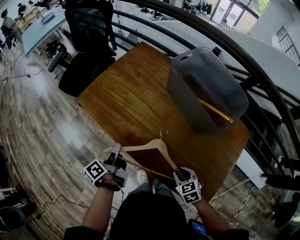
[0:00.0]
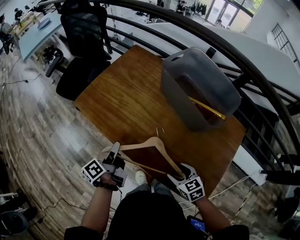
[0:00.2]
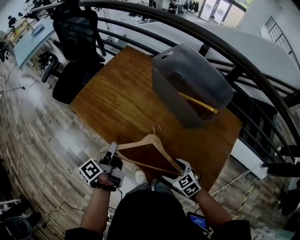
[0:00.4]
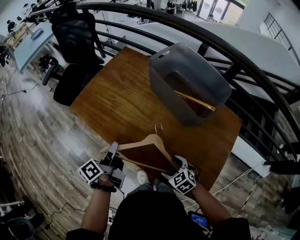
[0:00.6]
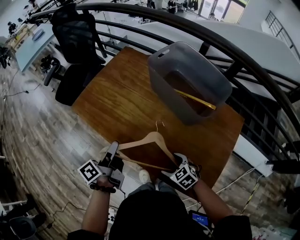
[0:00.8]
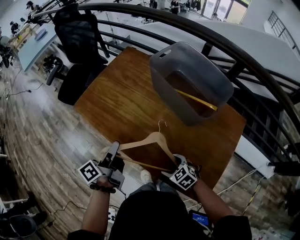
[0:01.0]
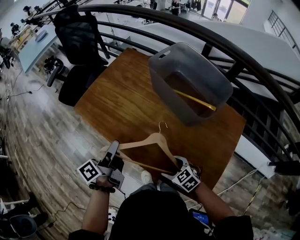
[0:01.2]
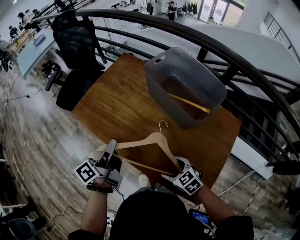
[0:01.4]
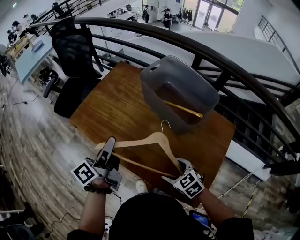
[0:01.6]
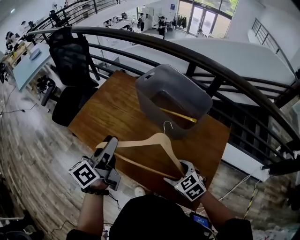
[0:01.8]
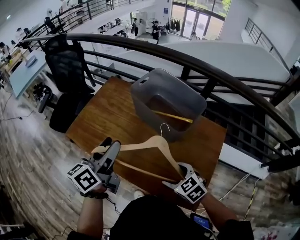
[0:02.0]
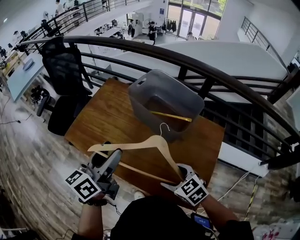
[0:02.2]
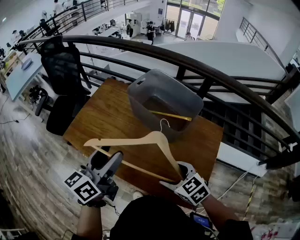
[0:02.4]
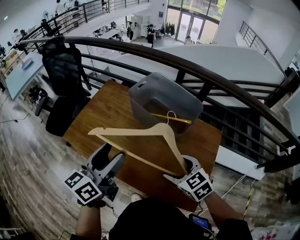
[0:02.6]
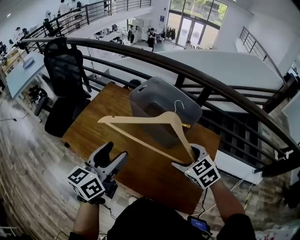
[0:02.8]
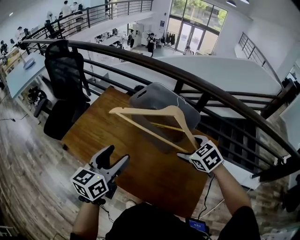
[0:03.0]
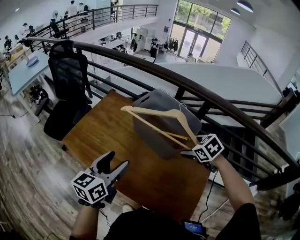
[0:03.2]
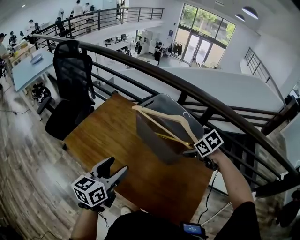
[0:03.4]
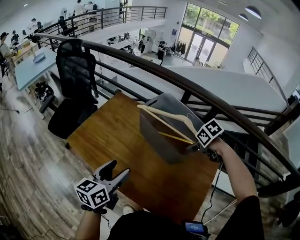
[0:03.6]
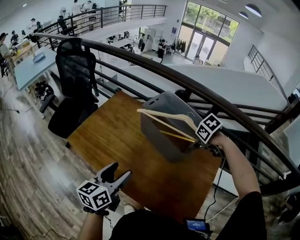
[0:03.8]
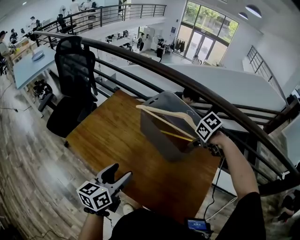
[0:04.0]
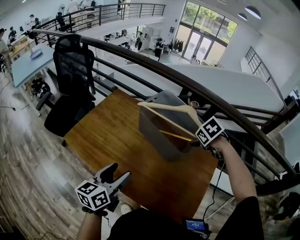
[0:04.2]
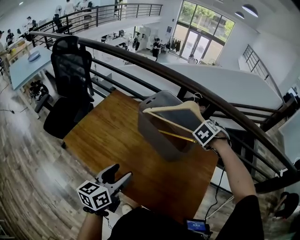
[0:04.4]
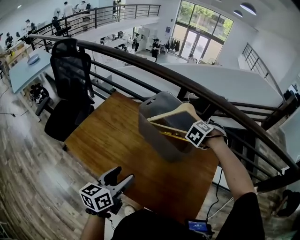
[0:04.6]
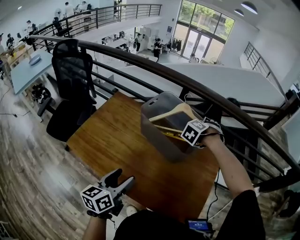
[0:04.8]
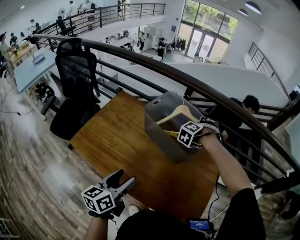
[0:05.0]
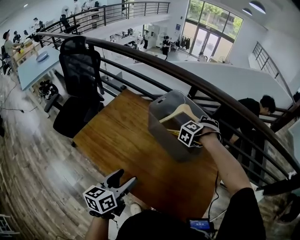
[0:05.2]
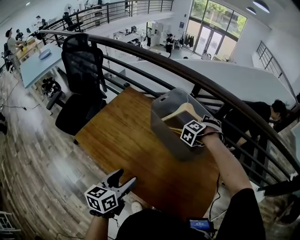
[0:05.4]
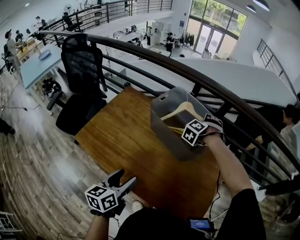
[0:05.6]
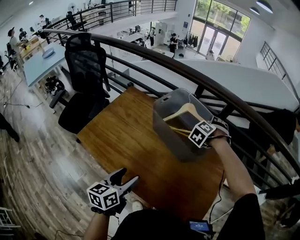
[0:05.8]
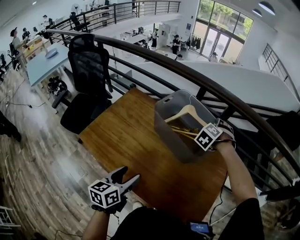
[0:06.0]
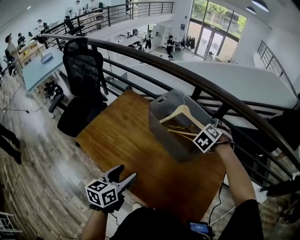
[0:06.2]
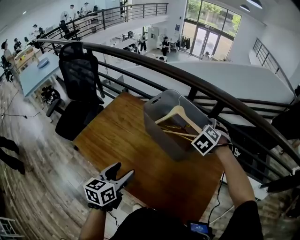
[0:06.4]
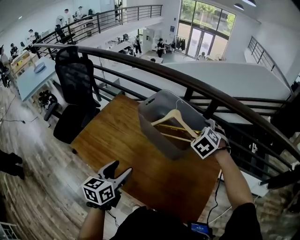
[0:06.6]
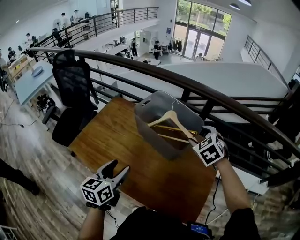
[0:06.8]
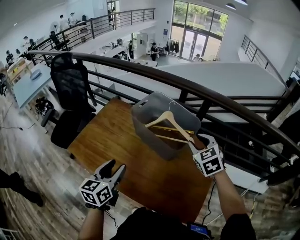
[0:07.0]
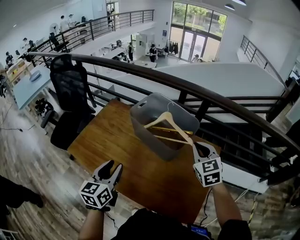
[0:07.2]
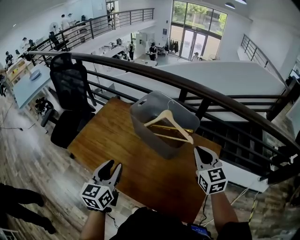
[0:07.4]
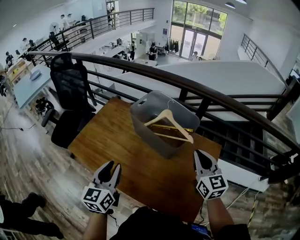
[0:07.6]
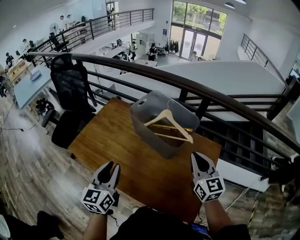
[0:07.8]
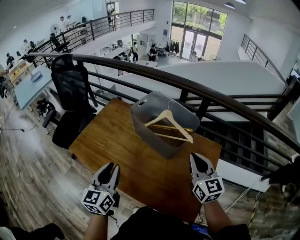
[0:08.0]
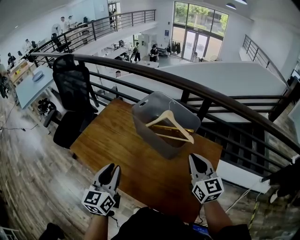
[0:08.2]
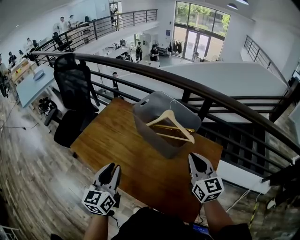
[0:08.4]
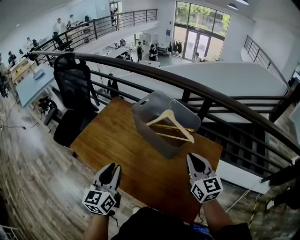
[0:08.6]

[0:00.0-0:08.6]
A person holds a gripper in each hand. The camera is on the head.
0:00.0 to 0:01.4: The left gripper shifts about 15 cm upward and to the right. The right gripper opens.
0:01.4 to 0:02.8: The left gripper heads upward and to the right, covering approximately 15 cm, rolls clockwise, seen from behind, by about 50 degrees, and opens up. Meanwhile the right gripper is displaced upward, forward and to the right by about 25 cm, and rotates some 20 degrees.
0:02.8 to 0:04.4: The left gripper goes roughly 10 cm downward, while the right gripper shifts by some 20 cm, and changes its angle by approximately 40 degrees.
0:04.4 to 0:05.8: The right gripper travels to the left by about 5 cm.
0:05.8 to 0:07.2: The right gripper moves approximately 20 cm, rotates some 60 degrees, and closes. Meanwhile the left gripper travels upward by about 5 cm, and closes its fingers.
0:07.2 to 0:08.6: The right gripper travels backward by about 5 cm, and turns by about 30 degrees.

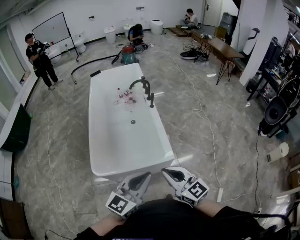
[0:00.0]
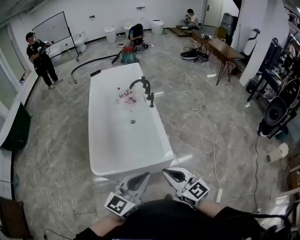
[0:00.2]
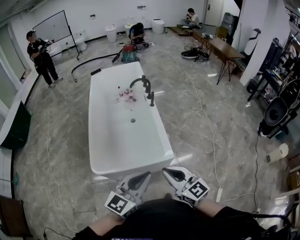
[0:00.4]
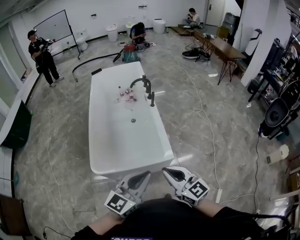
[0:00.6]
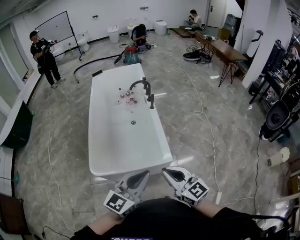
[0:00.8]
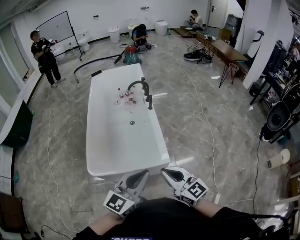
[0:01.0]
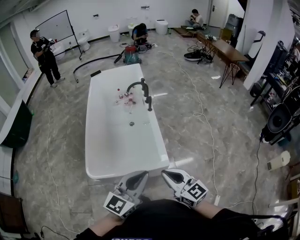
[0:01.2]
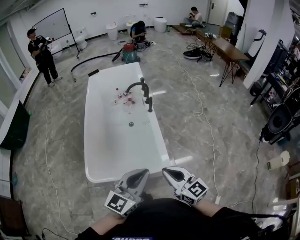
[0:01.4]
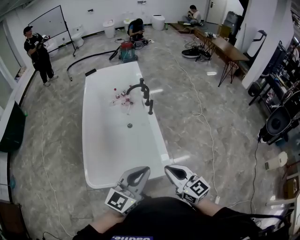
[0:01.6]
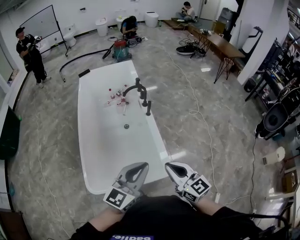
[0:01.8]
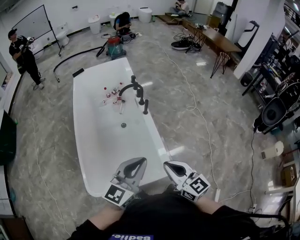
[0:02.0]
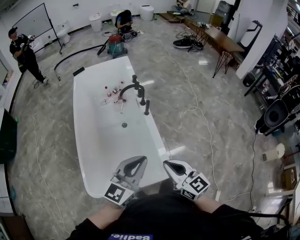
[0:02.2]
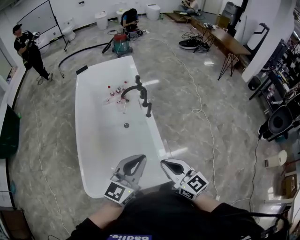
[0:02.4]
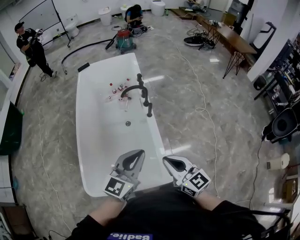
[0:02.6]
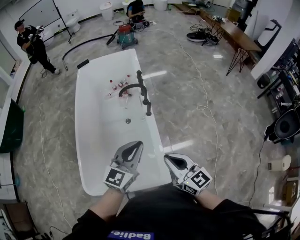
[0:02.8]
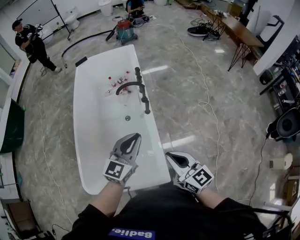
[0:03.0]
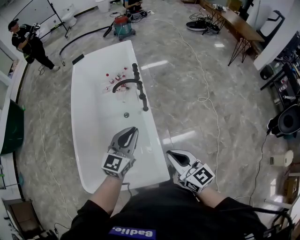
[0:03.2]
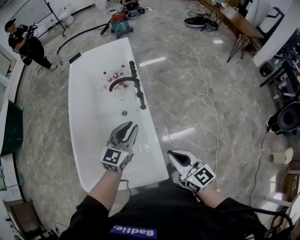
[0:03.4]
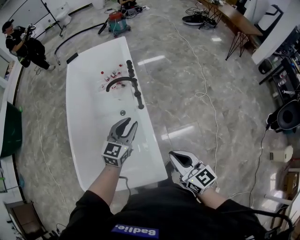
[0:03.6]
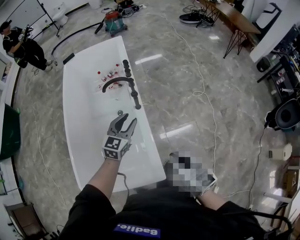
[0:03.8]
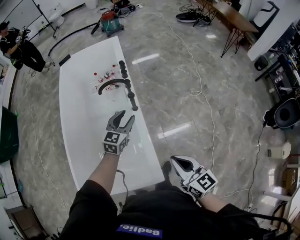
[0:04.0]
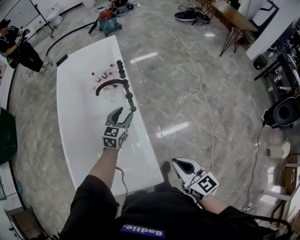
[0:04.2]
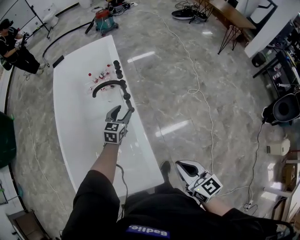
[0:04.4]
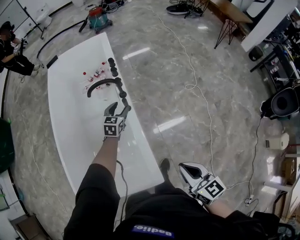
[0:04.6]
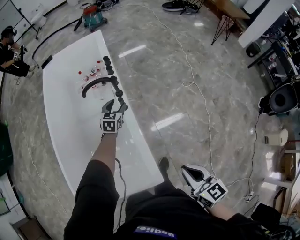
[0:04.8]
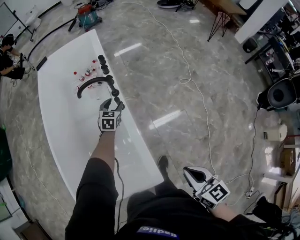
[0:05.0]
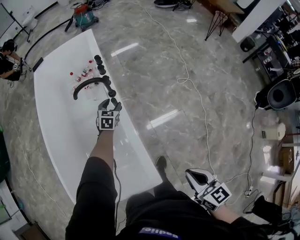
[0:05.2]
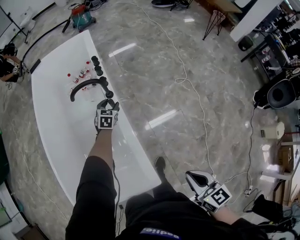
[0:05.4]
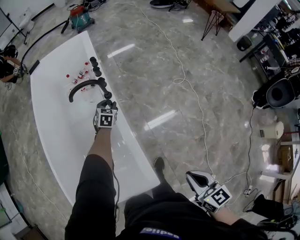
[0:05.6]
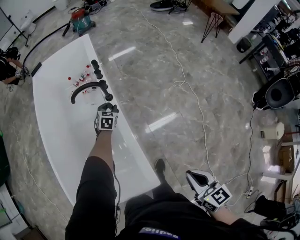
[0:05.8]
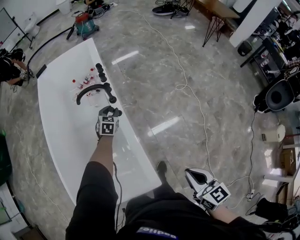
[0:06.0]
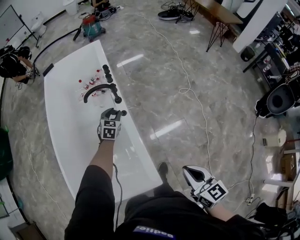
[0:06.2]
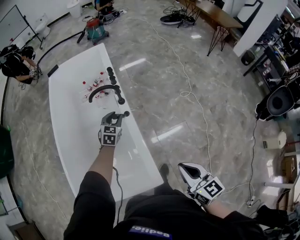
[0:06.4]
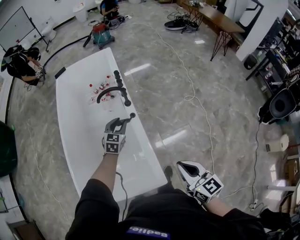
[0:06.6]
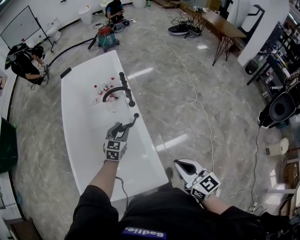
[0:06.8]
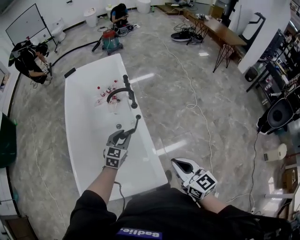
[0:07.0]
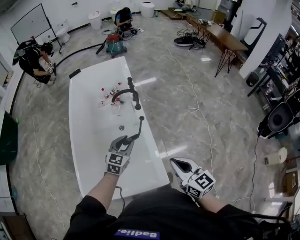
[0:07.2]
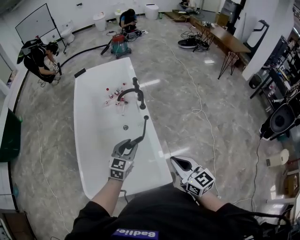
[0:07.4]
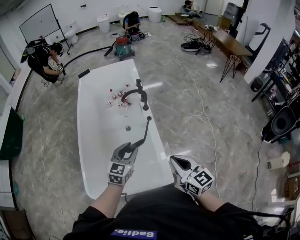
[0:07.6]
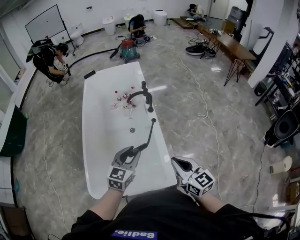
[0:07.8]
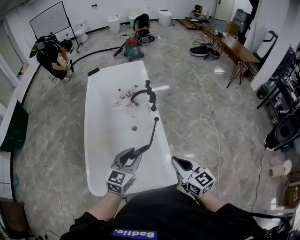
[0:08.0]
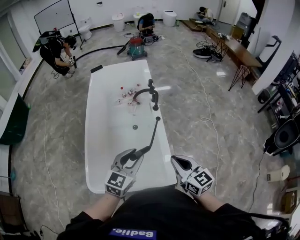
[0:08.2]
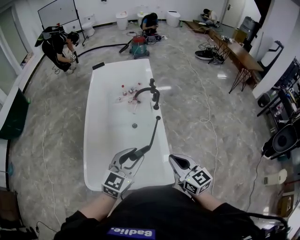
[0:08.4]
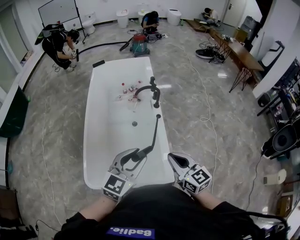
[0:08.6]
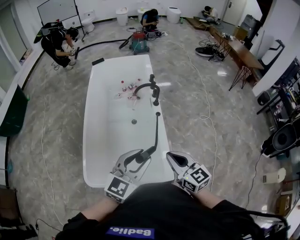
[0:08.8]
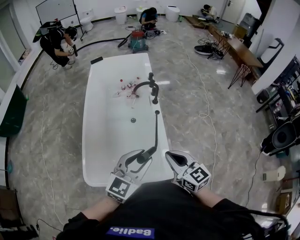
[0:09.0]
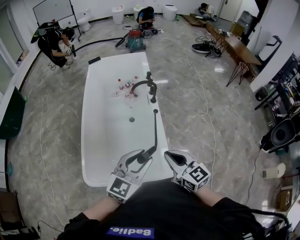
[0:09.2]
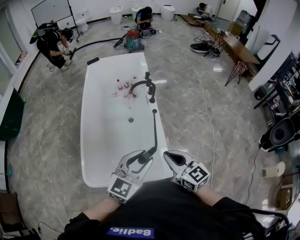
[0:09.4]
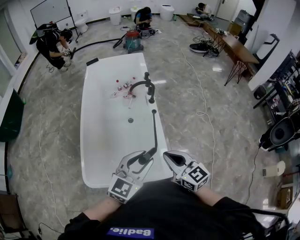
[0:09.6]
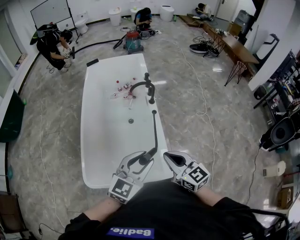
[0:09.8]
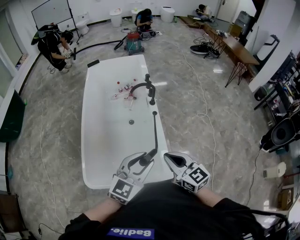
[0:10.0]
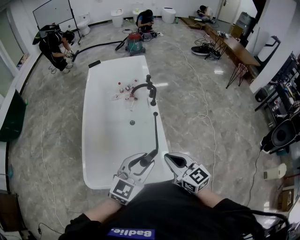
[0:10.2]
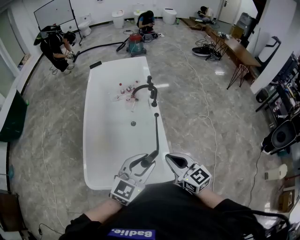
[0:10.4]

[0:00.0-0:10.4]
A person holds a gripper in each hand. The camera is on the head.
0:00.0 to 0:01.4: The left gripper goes approximately 10 cm forward. Meanwhile the right gripper heads forward and to the right, covering some 10 cm.
0:01.4 to 0:03.0: The grippers both shift forward by about 35 cm.
0:03.0 to 0:04.4: The right gripper heads to the right and downward, covering approximately 15 cm, while the left gripper heads forward and downward, covering roughly 30 cm, changes its angle by about 20 degrees, and opens its fingers.
0:04.4 to 0:06.0: The left gripper goes approximately 10 cm downward and forward; the right gripper moves to the right, approximately 5 cm.
0:06.0 to 0:07.4: The right gripper moves to the left and upward, roughly 20 cm. The left gripper moves backward and upward, roughly 40 cm, and rotates roughly 20 degrees.
0:07.4 to 0:09.0: The left gripper heads backward and upward, covering roughly 20 cm, while the right gripper shifts approximately 10 cm to the left.
0:09.0 to 0:10.4: The grippers stay close to where they were, moving slightly.

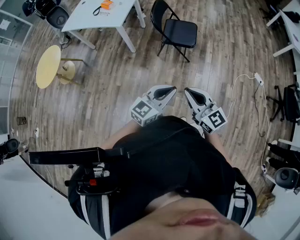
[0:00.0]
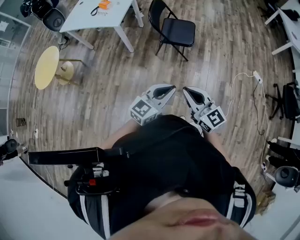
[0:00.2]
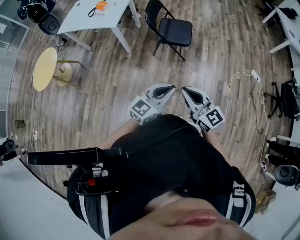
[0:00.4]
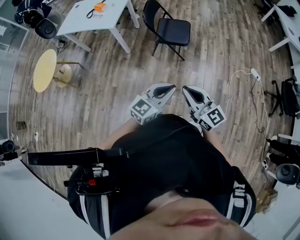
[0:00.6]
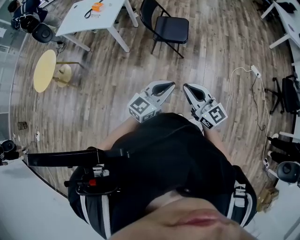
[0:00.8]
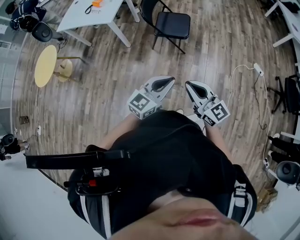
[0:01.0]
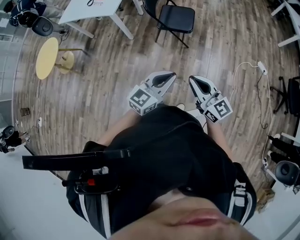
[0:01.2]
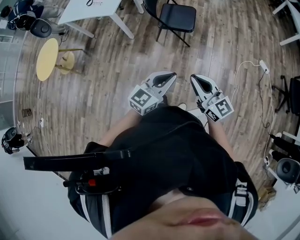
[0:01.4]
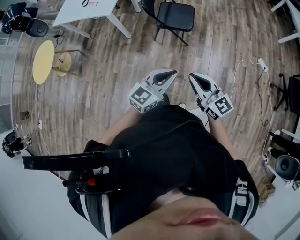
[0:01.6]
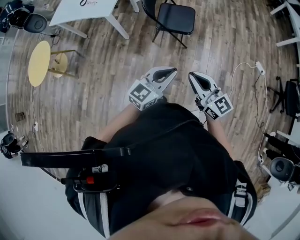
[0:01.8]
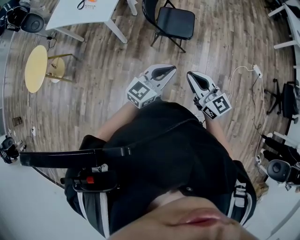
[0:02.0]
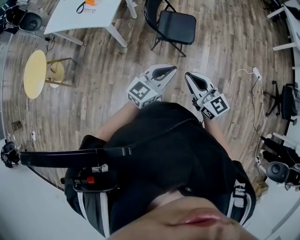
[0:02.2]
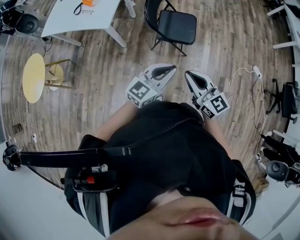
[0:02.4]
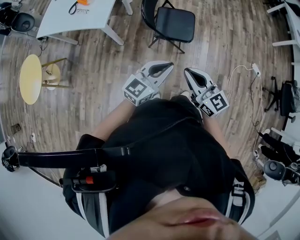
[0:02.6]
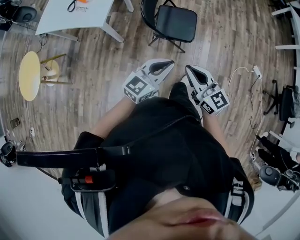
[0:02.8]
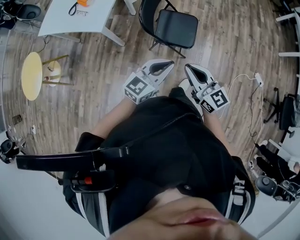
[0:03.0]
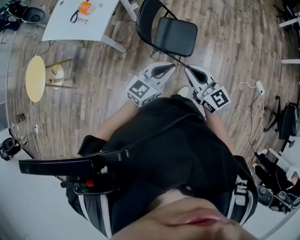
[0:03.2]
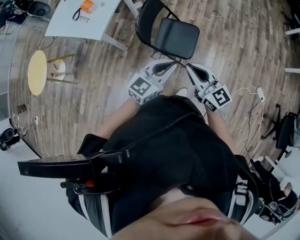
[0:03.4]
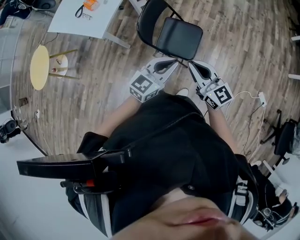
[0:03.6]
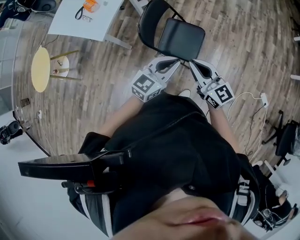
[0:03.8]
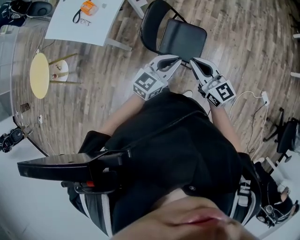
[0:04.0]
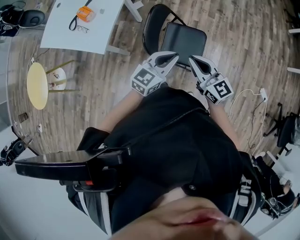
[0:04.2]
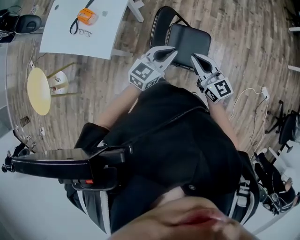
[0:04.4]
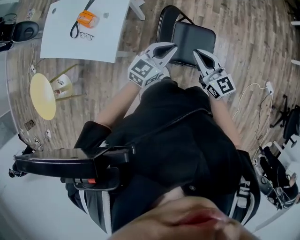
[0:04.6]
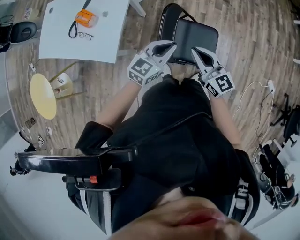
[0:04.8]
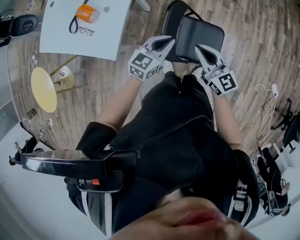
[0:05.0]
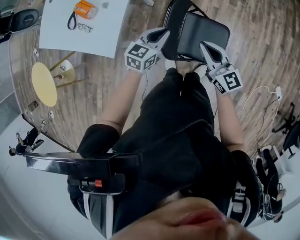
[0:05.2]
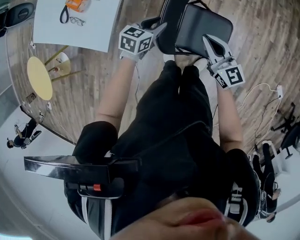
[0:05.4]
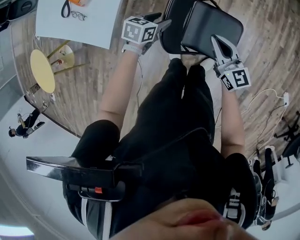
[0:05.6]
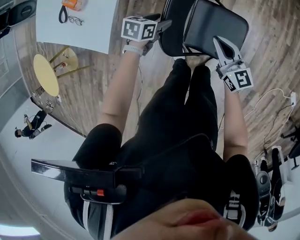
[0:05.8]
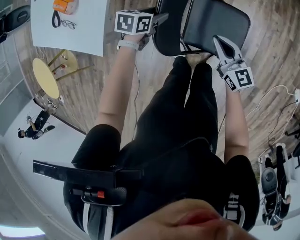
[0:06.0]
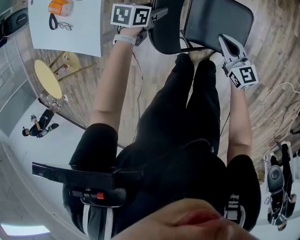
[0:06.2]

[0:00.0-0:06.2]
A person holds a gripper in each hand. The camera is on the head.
0:00.0 to 0:01.6: Both grippers travel together to the right, some 5 cm.
0:01.6 to 0:03.2: The two grippers go approximately 35 cm forward.
0:03.2 to 0:04.6: The right gripper goes approximately 30 cm forward. Meanwhile the left gripper shifts roughly 35 cm forward and to the left.
0:04.6 to 0:06.2: The two grippers go about 35 cm downward. The left gripper tilts its fingers about 40 degrees downward, and opens.
